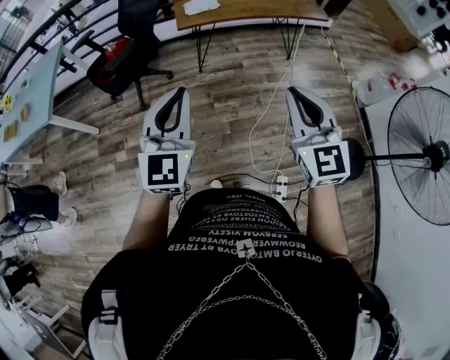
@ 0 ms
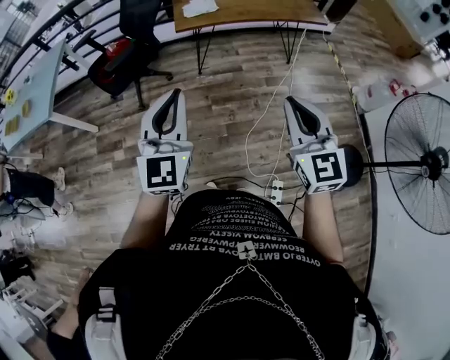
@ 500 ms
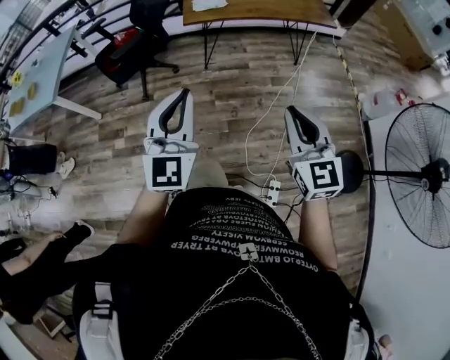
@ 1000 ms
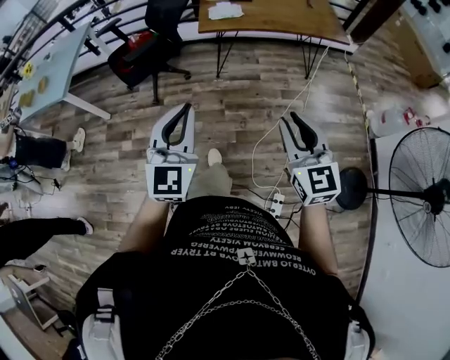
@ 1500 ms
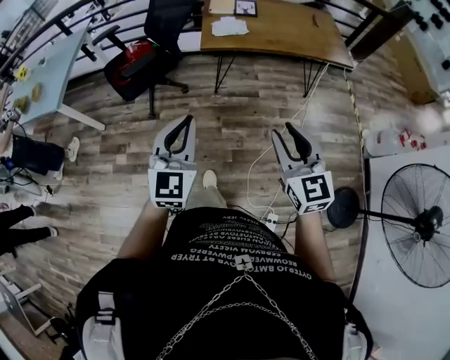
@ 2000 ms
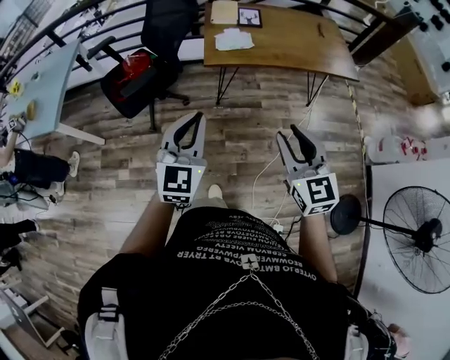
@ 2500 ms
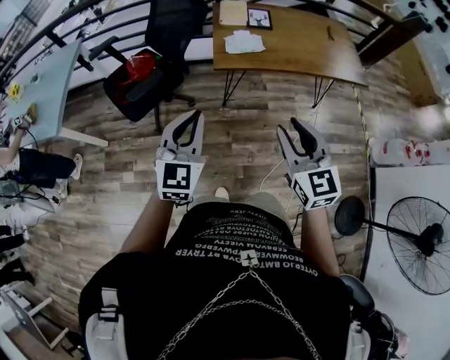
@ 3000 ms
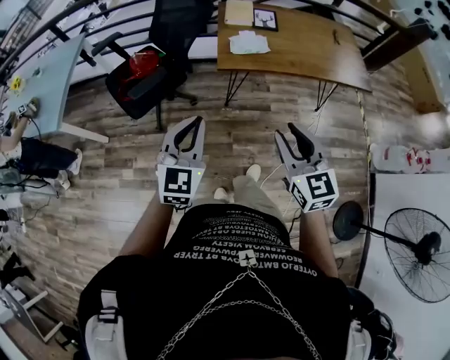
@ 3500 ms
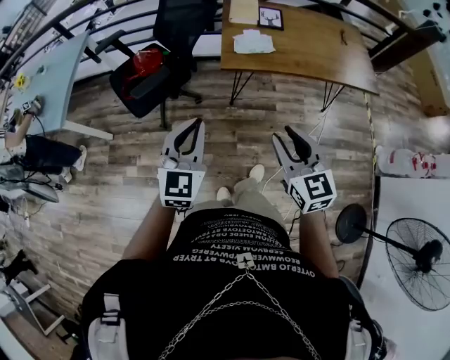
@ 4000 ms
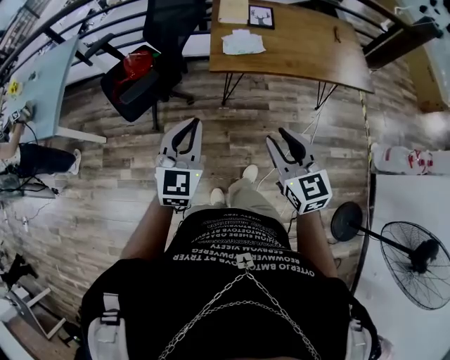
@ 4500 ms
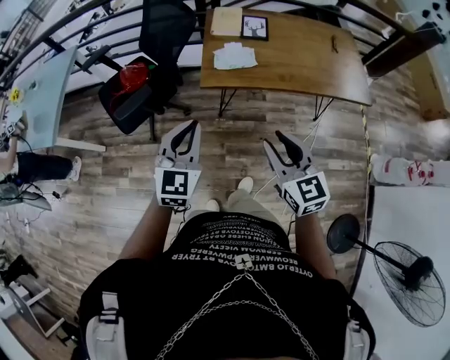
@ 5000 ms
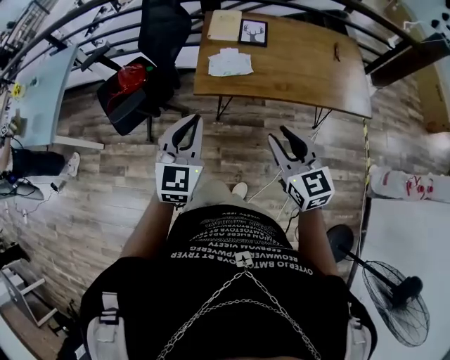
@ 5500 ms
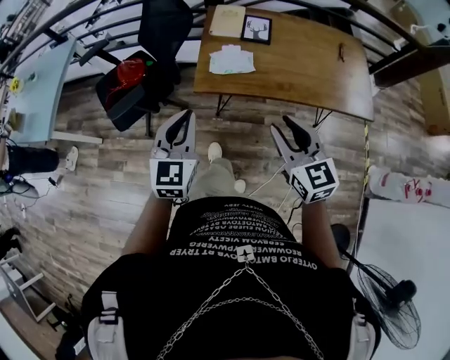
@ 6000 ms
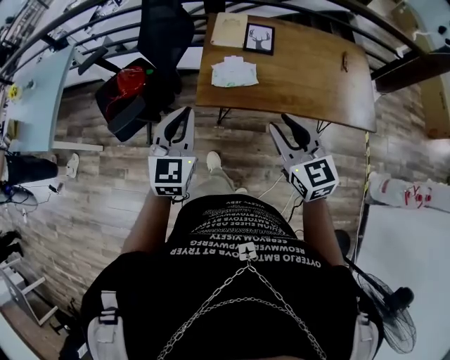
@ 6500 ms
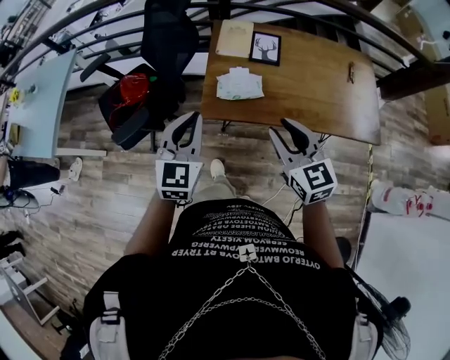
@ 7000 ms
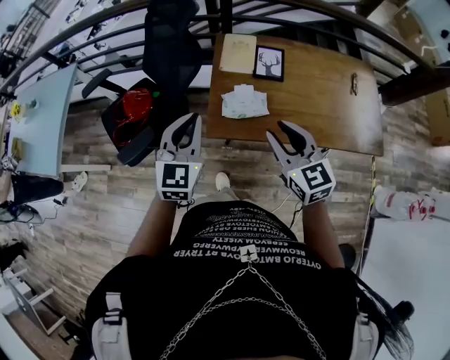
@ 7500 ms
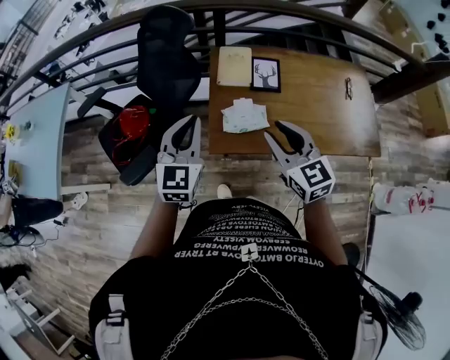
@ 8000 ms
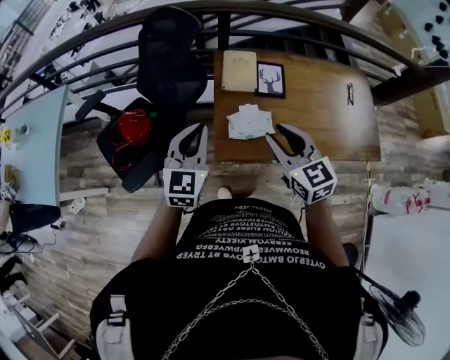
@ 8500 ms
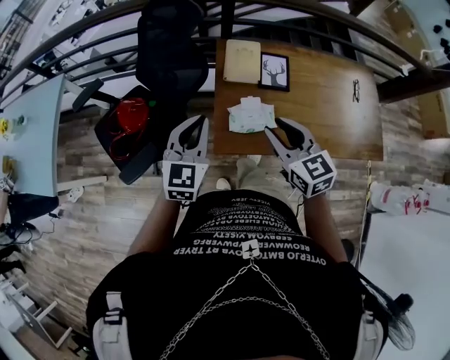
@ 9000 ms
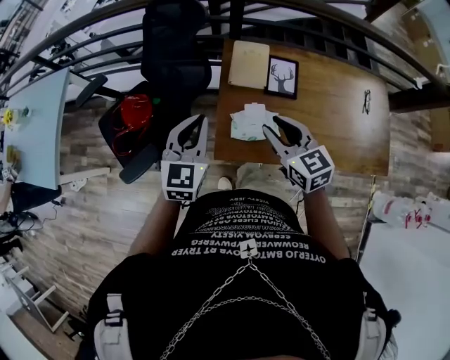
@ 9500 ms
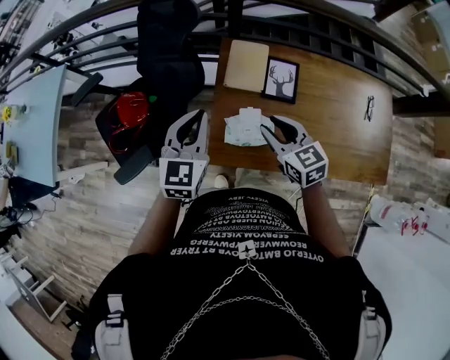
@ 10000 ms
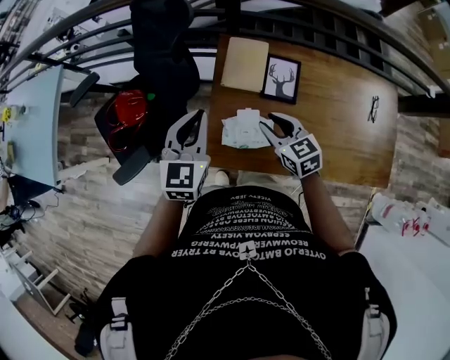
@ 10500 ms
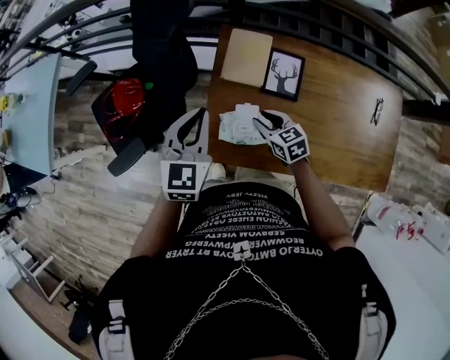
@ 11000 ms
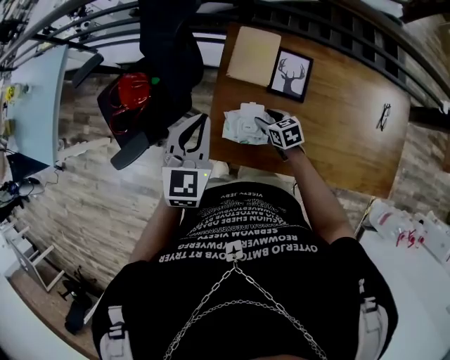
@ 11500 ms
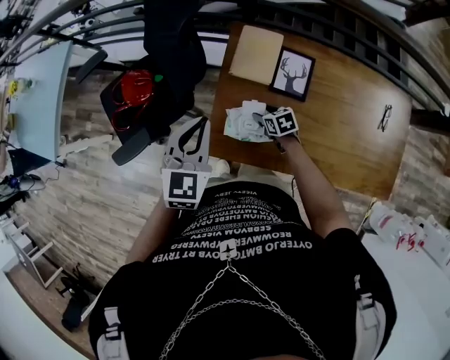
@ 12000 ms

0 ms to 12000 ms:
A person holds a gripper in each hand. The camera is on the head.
0 ms to 2000 ms: The grippers both shift forward and downward by some 10 cm. The right gripper opens up.
2000 ms to 4000 ms: Both grippers travel together forward, about 20 cm.
4000 ms to 6000 ms: The grippers both shift forward and to the right by approximately 20 cm.
6000 ms to 8000 ms: Both grippers travel together forward, roughly 25 cm.
8000 ms to 10000 ms: Both grippers move forward and downward, approximately 15 cm.
10000 ms to 12000 ms: The right gripper travels downward by approximately 25 cm, rotates approximately 30 degrees, and opens its fingers.

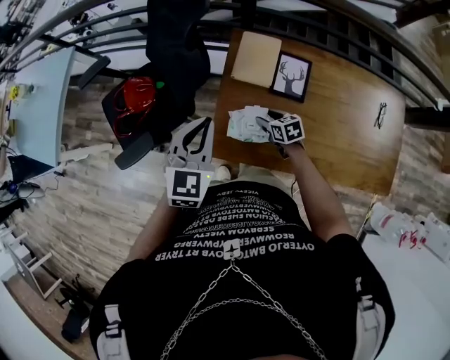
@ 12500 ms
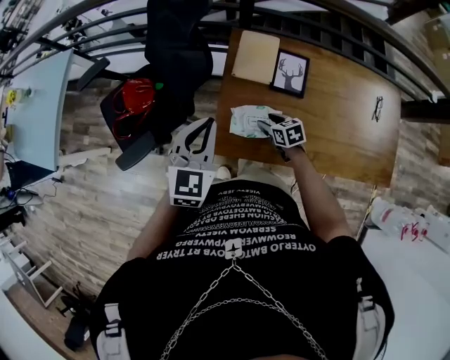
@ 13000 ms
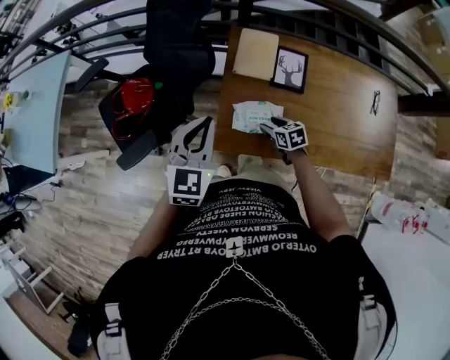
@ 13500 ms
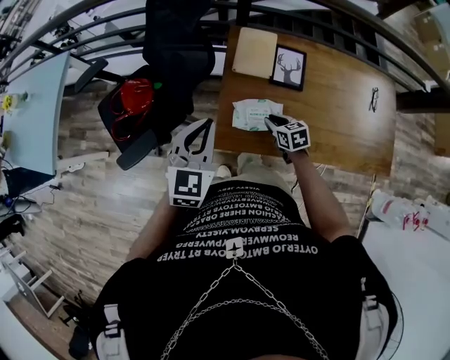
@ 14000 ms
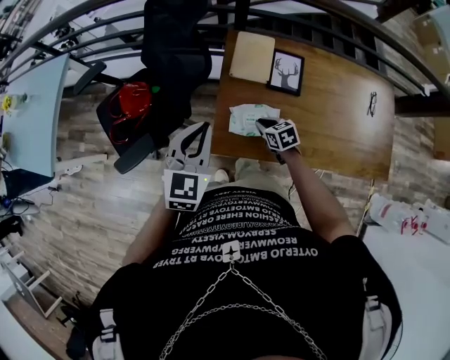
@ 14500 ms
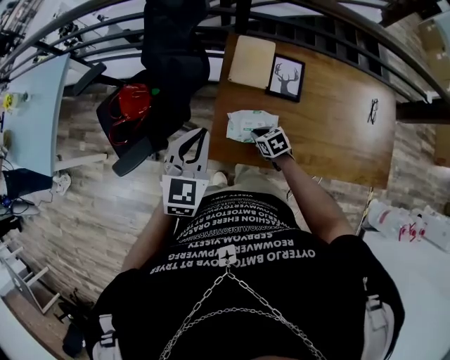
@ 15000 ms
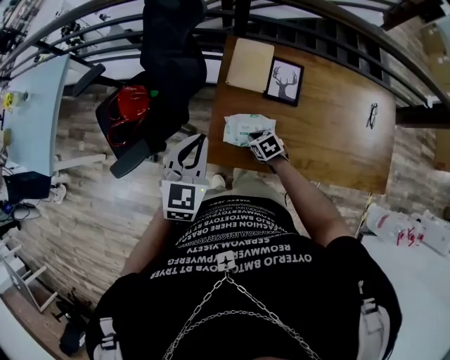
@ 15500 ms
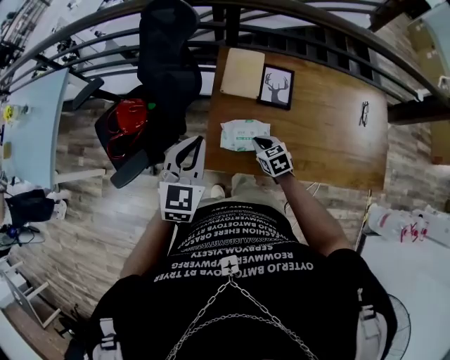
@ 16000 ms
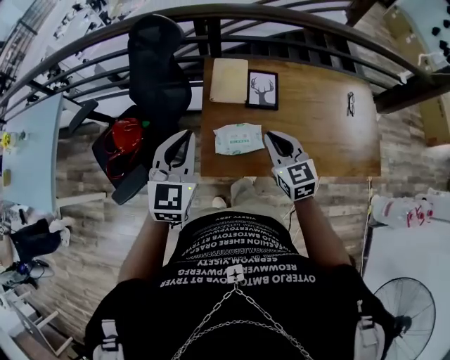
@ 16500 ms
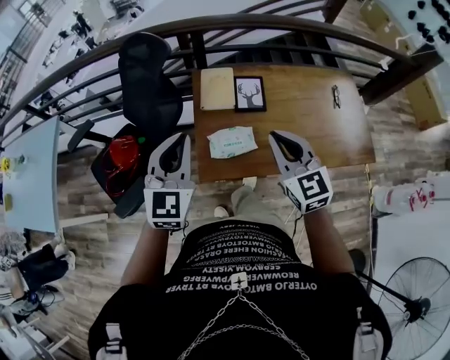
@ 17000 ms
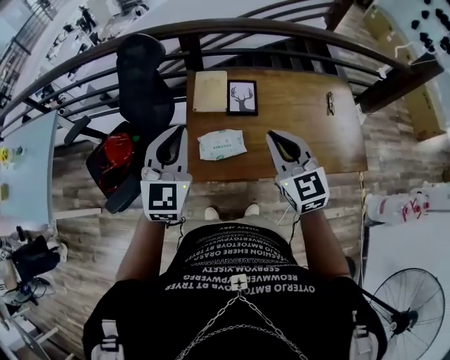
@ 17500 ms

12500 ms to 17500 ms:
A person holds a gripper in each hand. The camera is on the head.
12500 ms to 15000 ms: The right gripper heads backward, covering some 5 cm, and closes up.
15000 ms to 17500 ms: The left gripper shifts approximately 10 cm upward; the right gripper travels upward by roughly 40 cm, and points its fingers roughly 40 degrees further upward.

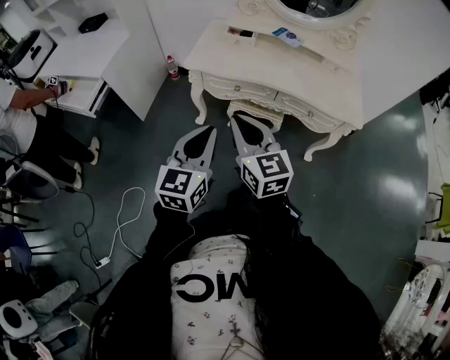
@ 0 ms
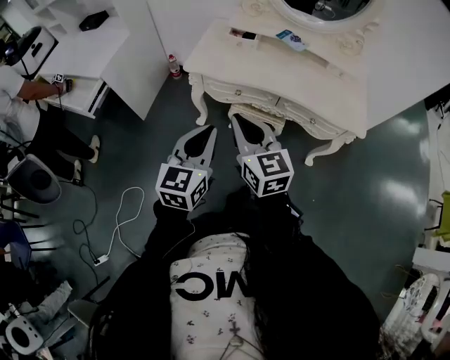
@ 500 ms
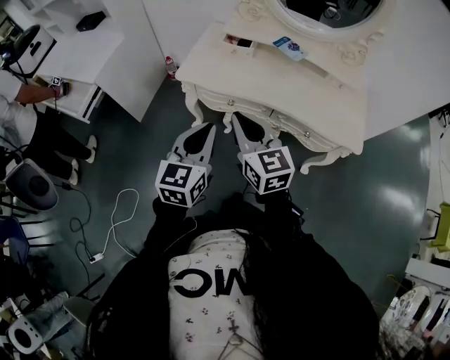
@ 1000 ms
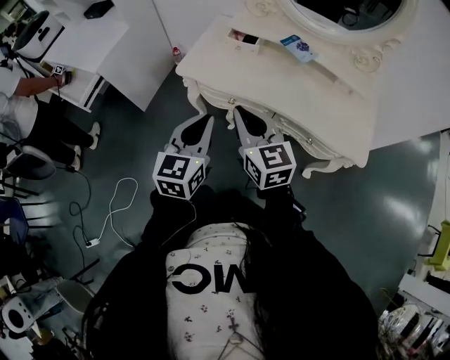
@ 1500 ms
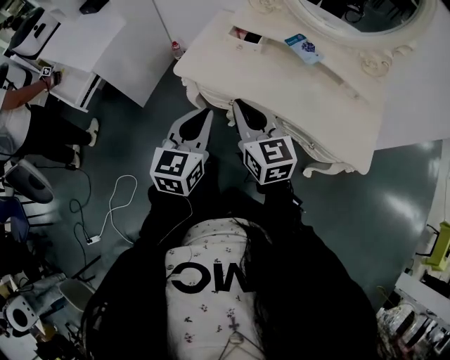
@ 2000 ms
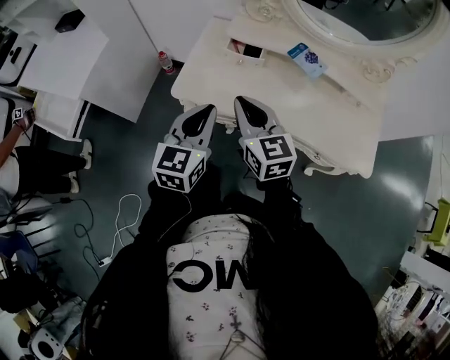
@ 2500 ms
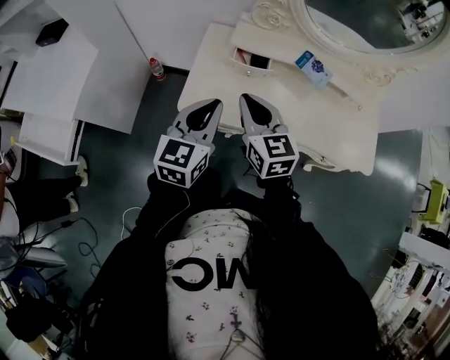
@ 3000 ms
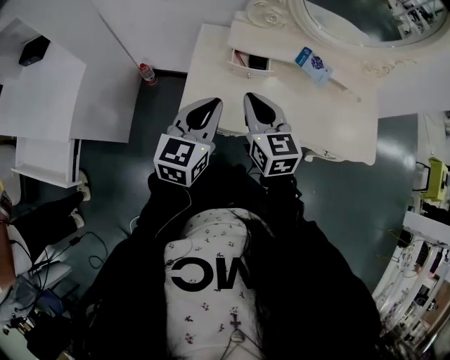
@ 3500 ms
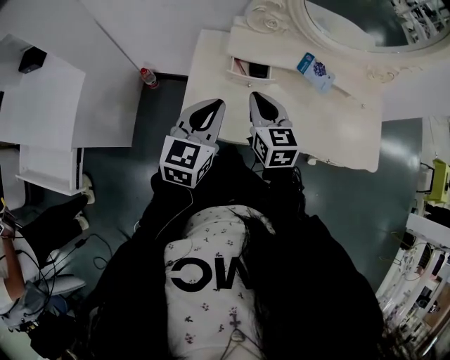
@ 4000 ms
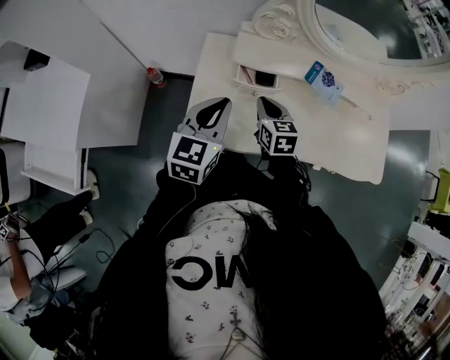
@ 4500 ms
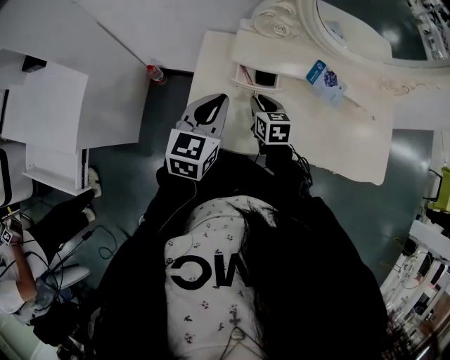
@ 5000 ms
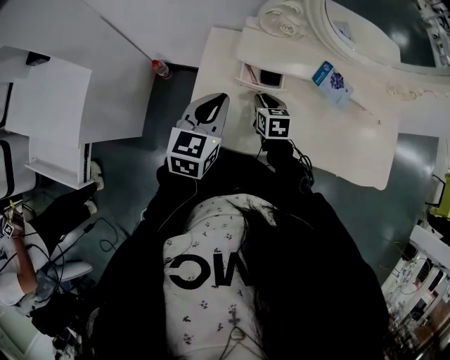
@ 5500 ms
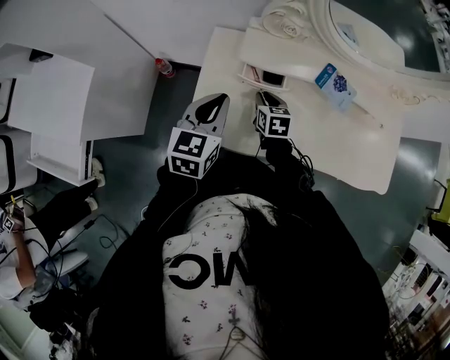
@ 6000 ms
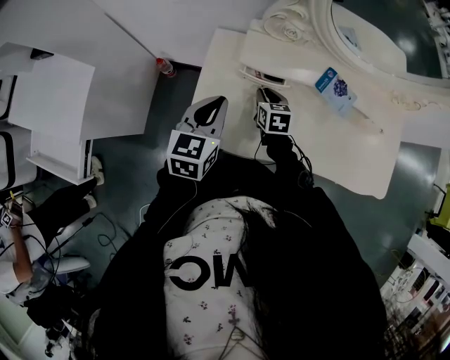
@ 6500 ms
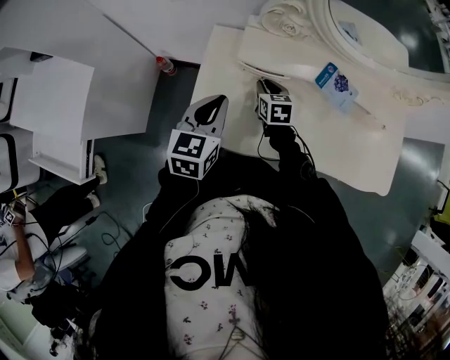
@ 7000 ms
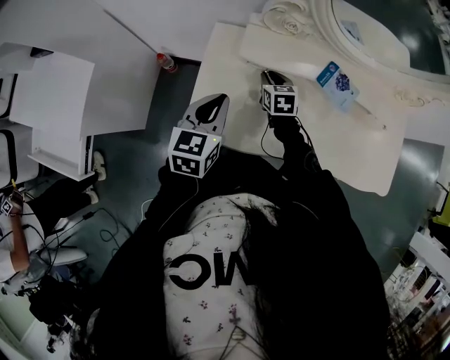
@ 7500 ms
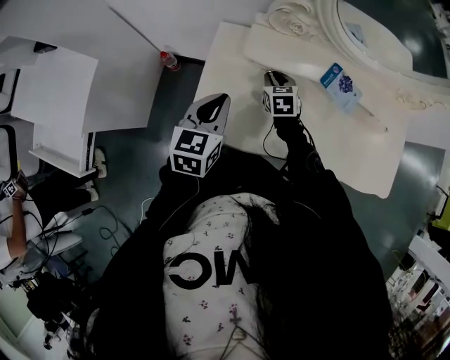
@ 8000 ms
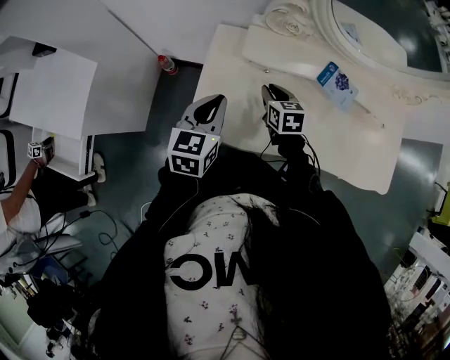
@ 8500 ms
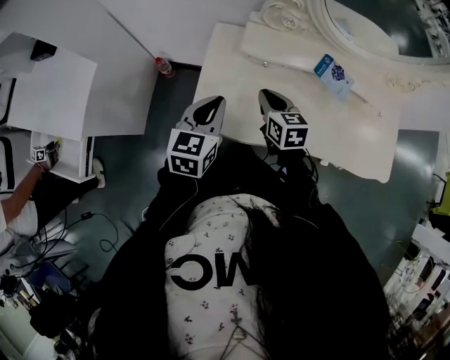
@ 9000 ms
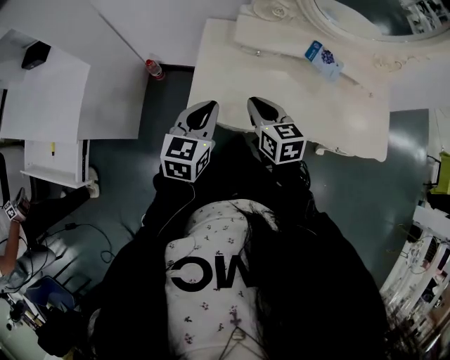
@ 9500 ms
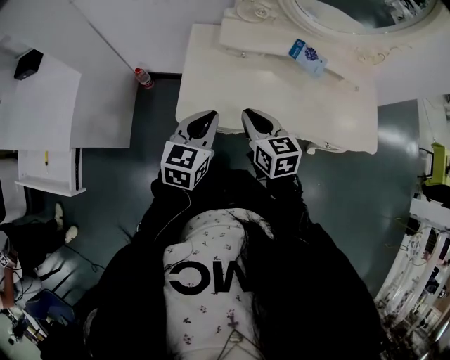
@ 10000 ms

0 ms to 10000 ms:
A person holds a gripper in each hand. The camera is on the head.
0 ms to 2000 ms: The left gripper travels forward by some 20 cm; the right gripper moves forward and to the right, about 25 cm.
2000 ms to 4000 ms: The right gripper moves some 30 cm, and turns by approximately 30 degrees. Meanwhile the left gripper moves about 30 cm, and turns by some 20 degrees.
4000 ms to 6000 ms: The left gripper shifts about 5 cm forward, while the right gripper travels downward and forward by some 20 cm, and turns by roughly 20 degrees.
6000 ms to 8000 ms: The right gripper moves forward, roughly 5 cm.
8000 ms to 10000 ms: The right gripper travels backward and upward by about 30 cm. Meanwhile the left gripper moves backward, approximately 15 cm.
